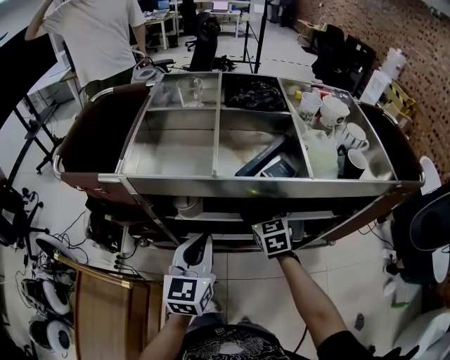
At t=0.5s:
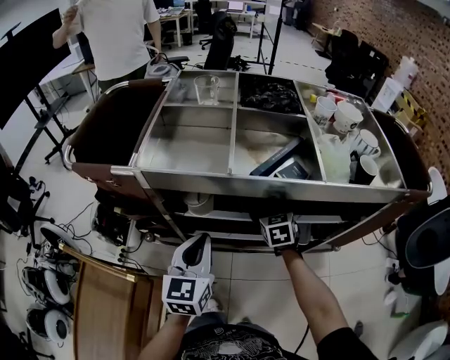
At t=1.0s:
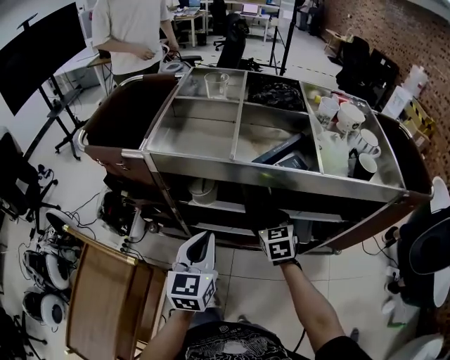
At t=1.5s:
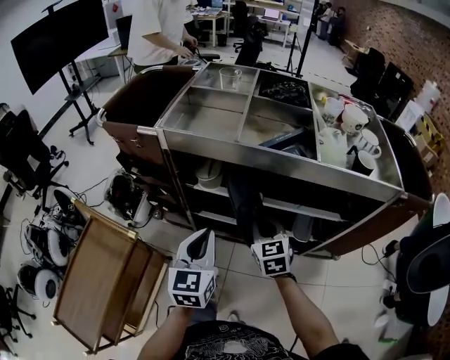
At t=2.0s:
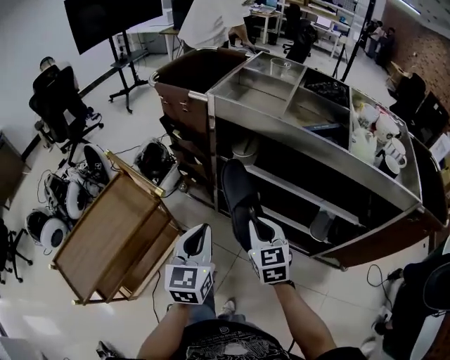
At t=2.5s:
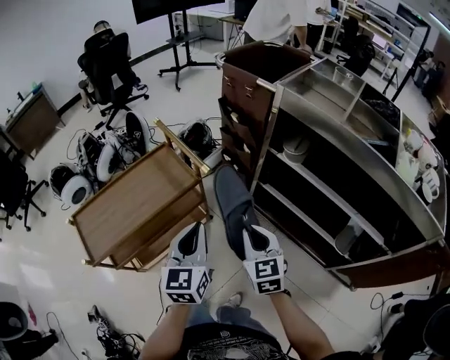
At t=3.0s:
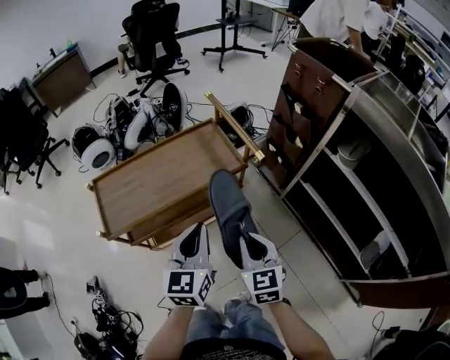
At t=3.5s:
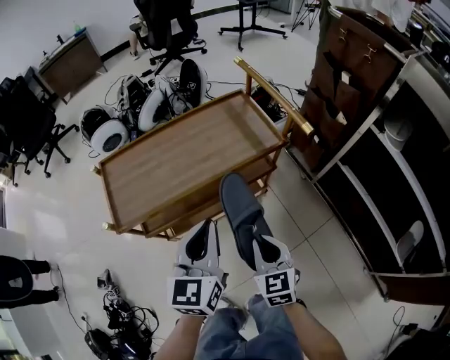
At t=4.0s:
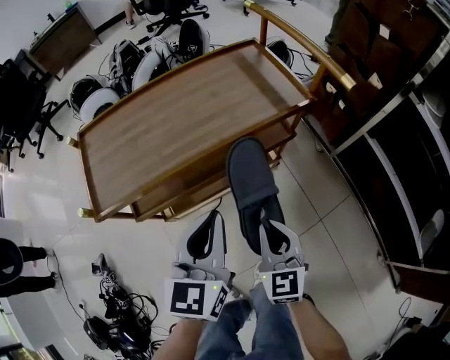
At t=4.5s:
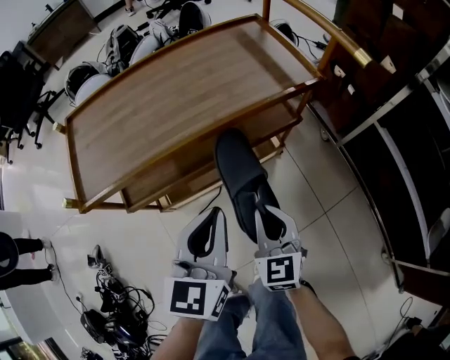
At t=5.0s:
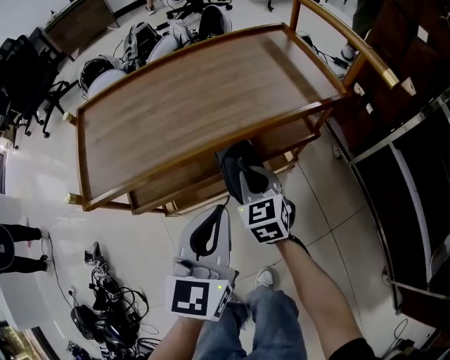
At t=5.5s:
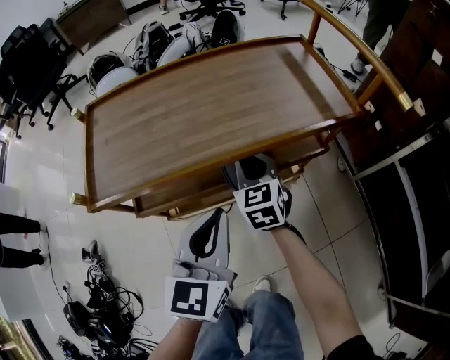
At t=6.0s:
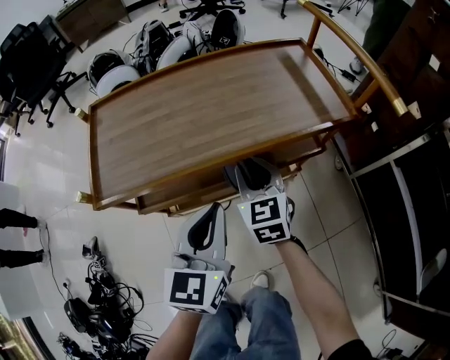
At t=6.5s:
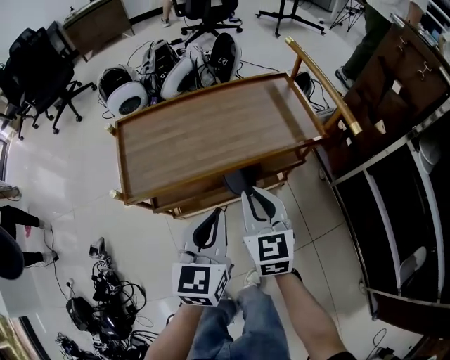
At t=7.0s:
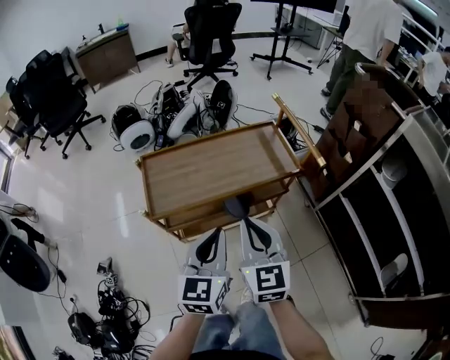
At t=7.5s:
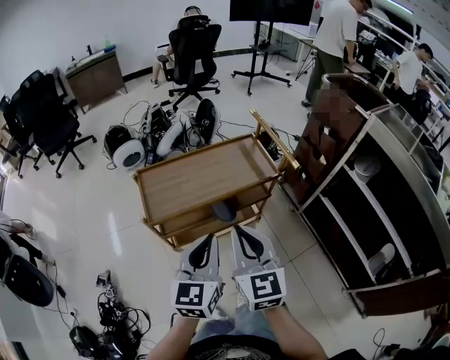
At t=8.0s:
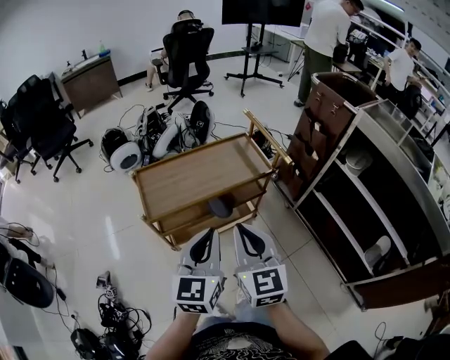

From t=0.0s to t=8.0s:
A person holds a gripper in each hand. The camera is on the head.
From t=0.0s to t=2.0s: The left gripper changes place by about 20 cm, and changes its angle by about 30 degrees. The right gripper shifts by about 25 cm, turns by about 30 degrees, and closes.
From t=2.0s to t=4.0s: The left gripper ends up about 40 cm from where it was, and changes its angle by roughly 30 degrees; the right gripper shifts by roughly 50 cm, and rotates roughly 30 degrees.
From t=4.0s to t=6.0s: The left gripper moves downward, about 5 cm. Meanwhile the right gripper is displaced forward and to the left by approximately 20 cm.
From t=6.0s to t=8.0s: The grippers both shift upward and backward by about 40 cm. The right gripper rotates about 20 degrees.

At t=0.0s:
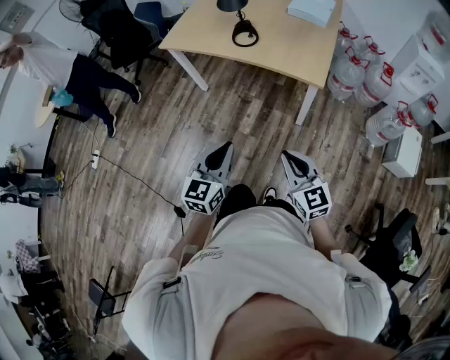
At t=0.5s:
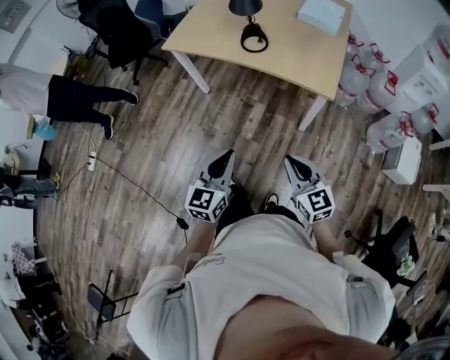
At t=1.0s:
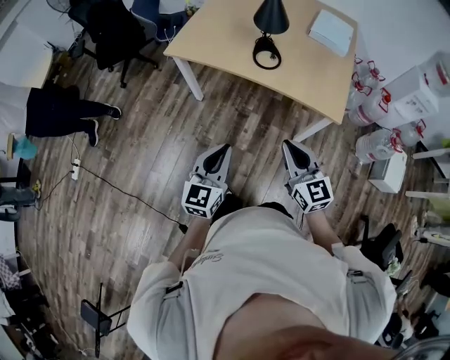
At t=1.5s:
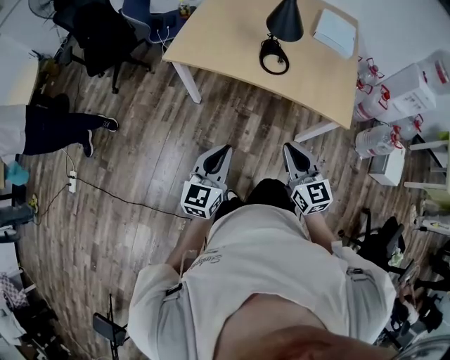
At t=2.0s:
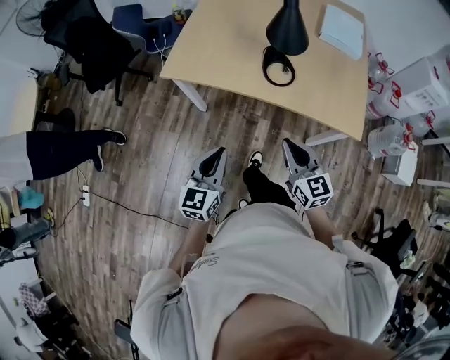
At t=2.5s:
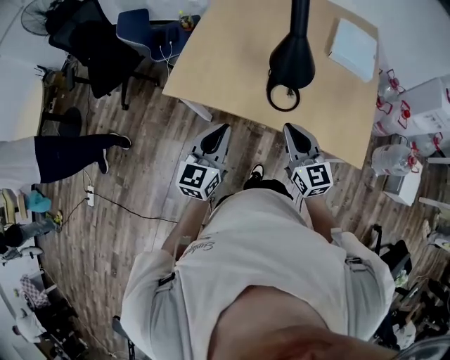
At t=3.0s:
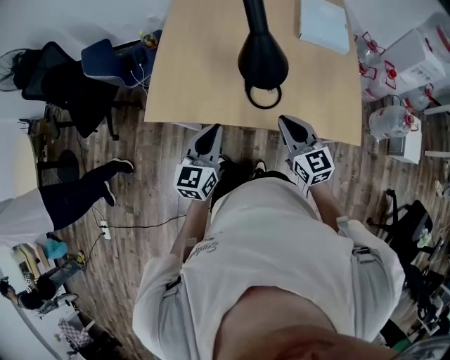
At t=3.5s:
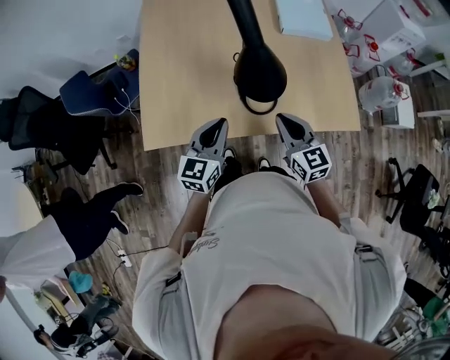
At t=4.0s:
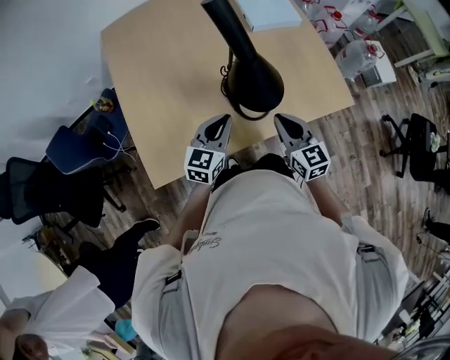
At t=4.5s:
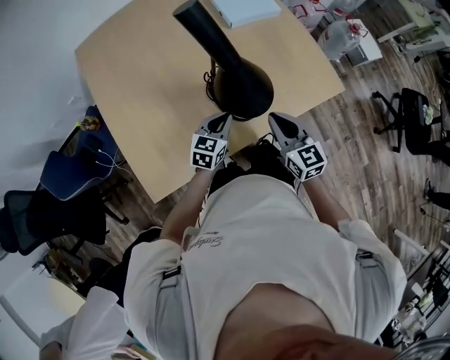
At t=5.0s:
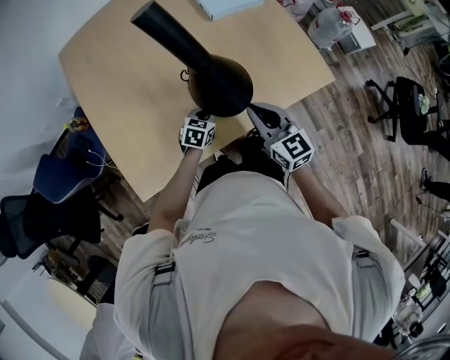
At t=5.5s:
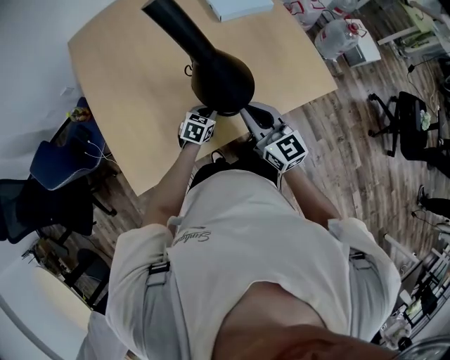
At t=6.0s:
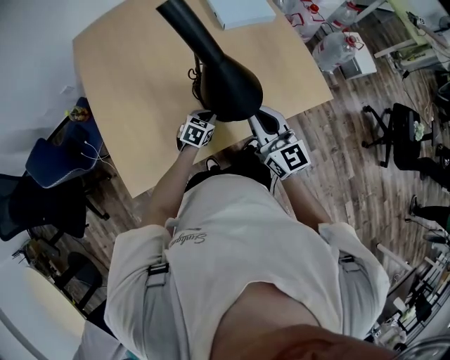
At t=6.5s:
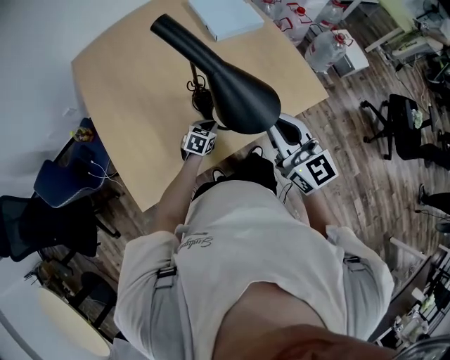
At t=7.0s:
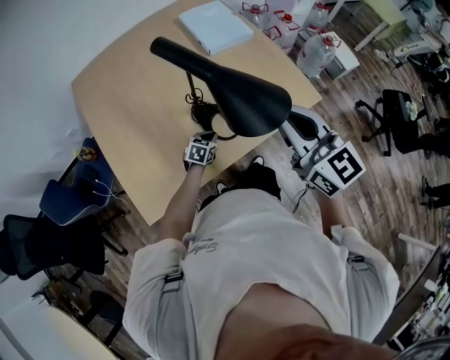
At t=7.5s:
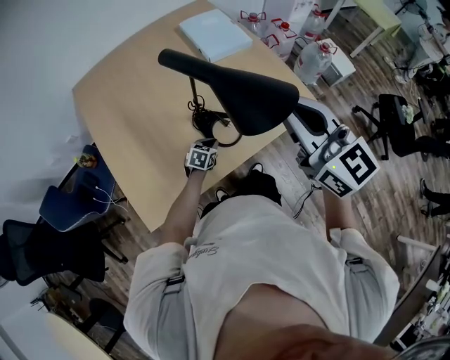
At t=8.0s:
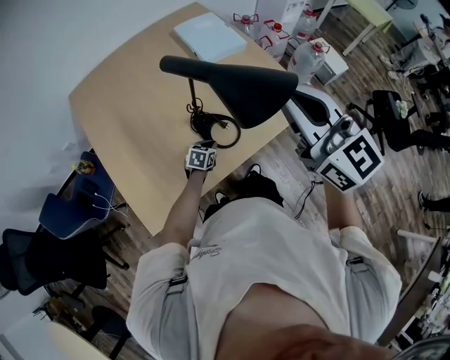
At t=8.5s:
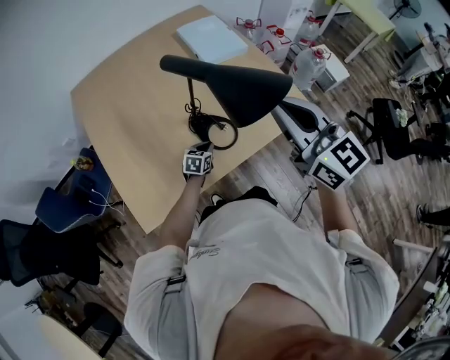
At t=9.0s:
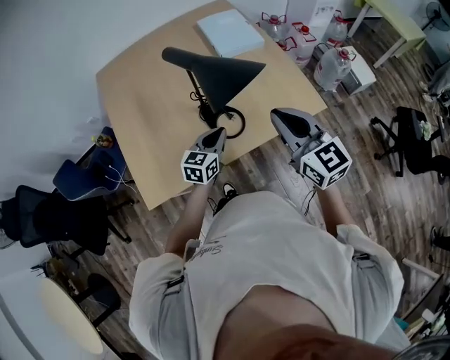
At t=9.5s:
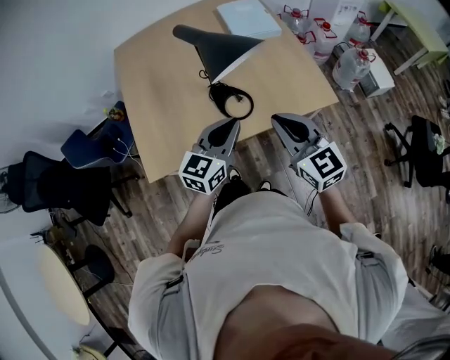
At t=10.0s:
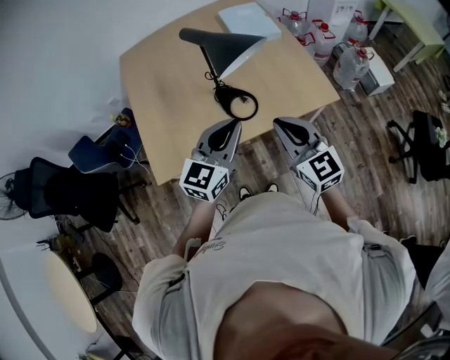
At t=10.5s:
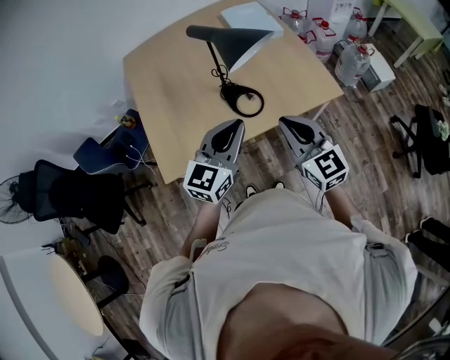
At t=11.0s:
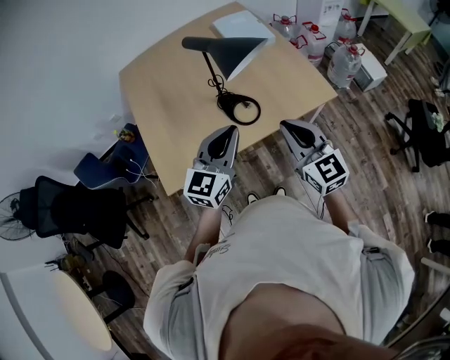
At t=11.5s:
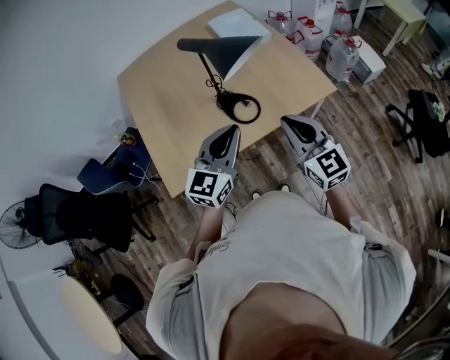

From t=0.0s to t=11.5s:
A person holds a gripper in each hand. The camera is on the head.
From t=0.0s to t=2.0s: Both grippers are carried forward and to the left, some 40 cm.
From t=2.0s to t=4.0s: The left gripper shifts by some 40 cm, and turns by some 50 degrees. Meanwhile the right gripper moves roughly 25 cm, and changes its angle by approximately 30 degrees.
From t=4.0s to t=6.0s: The right gripper shifts some 5 cm upward. The left gripper shifts about 20 cm downward, and tilts its fingers approximately 30 degrees downward.
From t=6.0s to t=7.5s: The right gripper goes about 25 cm upward.
From t=7.5s to t=9.5s: The left gripper travels upward by roughly 35 cm, and tilts its fingers approximately 40 degrees upward, while the right gripper moves downward, backward and to the right, about 15 cm.
From t=9.5s to t=11.5s: The left gripper shifts some 5 cm upward.

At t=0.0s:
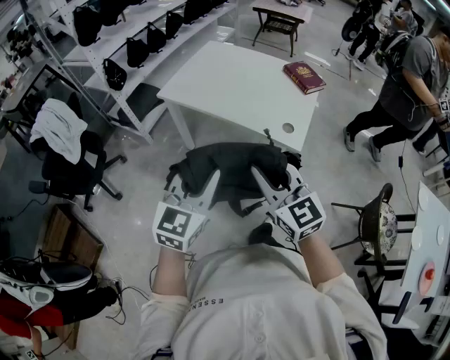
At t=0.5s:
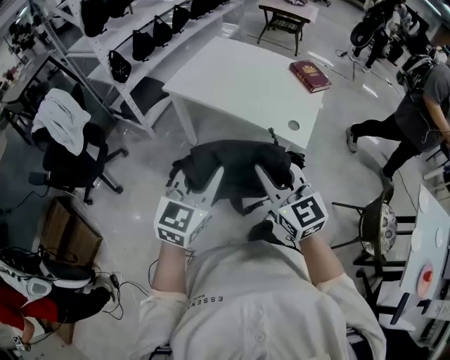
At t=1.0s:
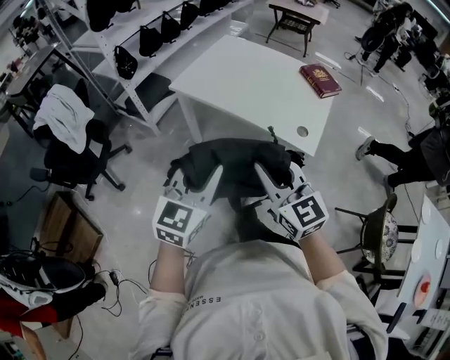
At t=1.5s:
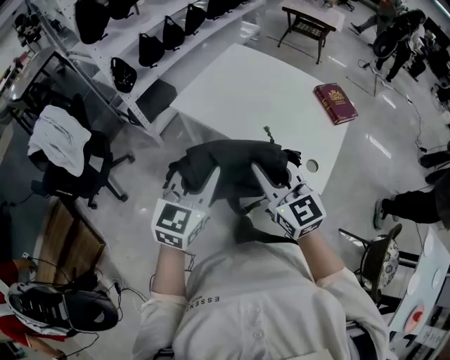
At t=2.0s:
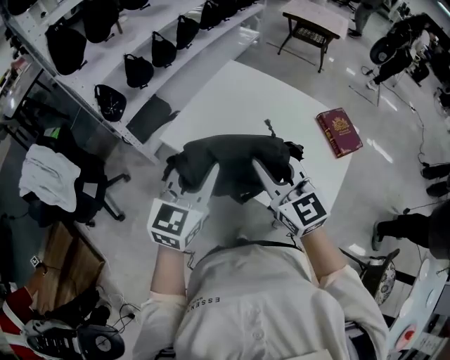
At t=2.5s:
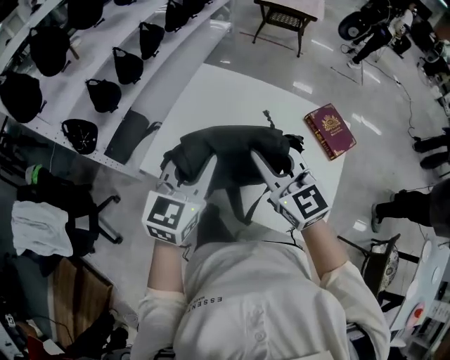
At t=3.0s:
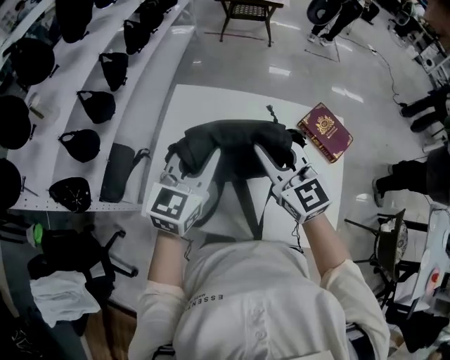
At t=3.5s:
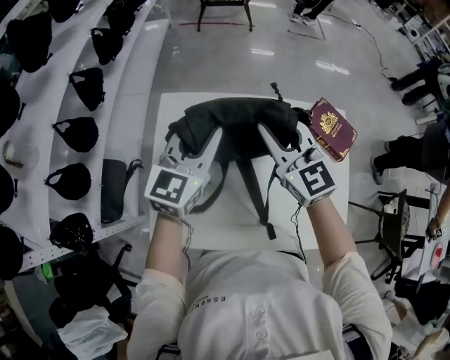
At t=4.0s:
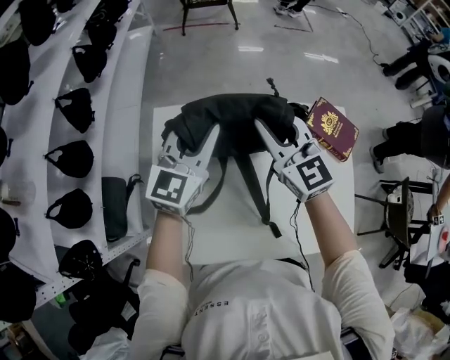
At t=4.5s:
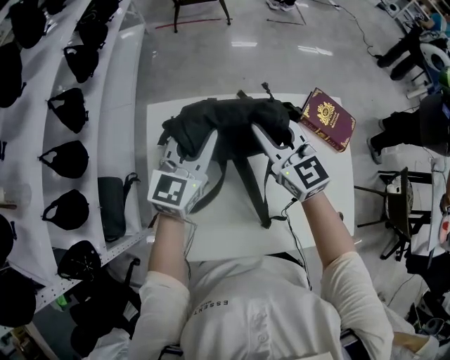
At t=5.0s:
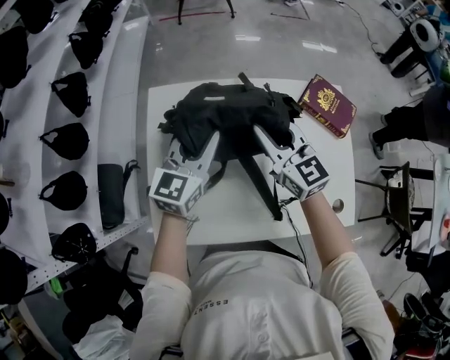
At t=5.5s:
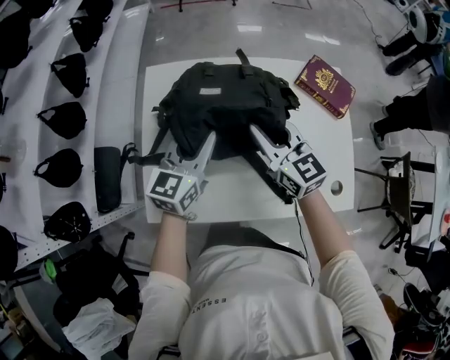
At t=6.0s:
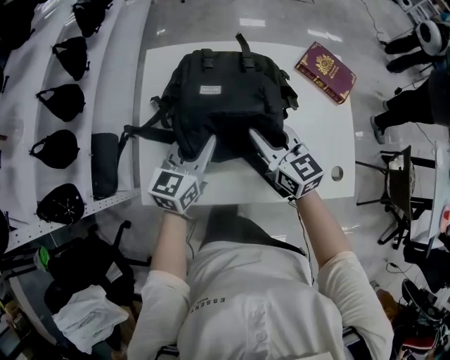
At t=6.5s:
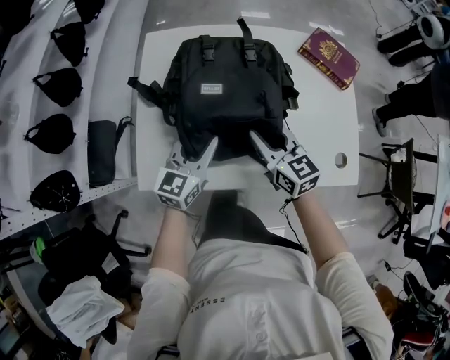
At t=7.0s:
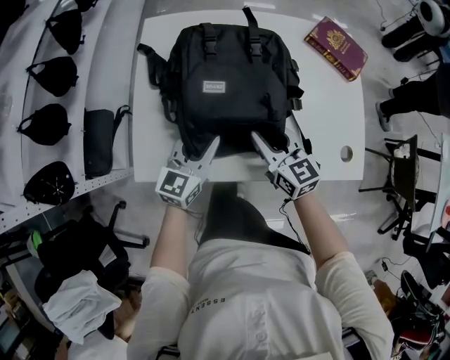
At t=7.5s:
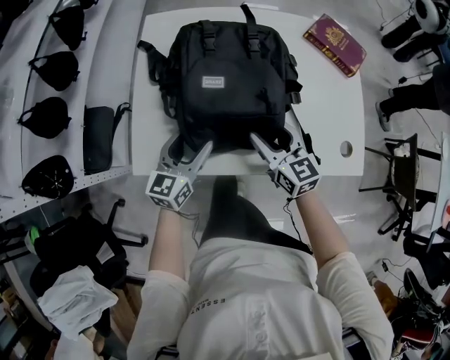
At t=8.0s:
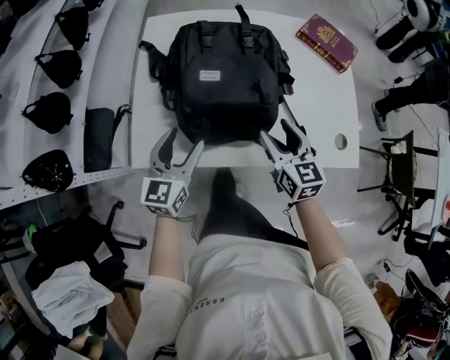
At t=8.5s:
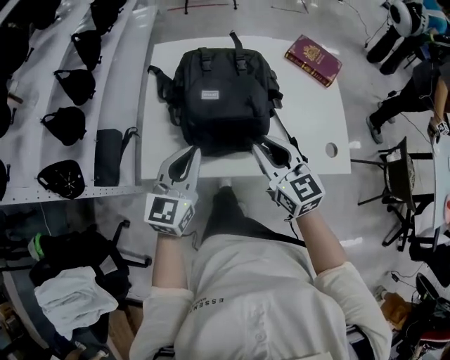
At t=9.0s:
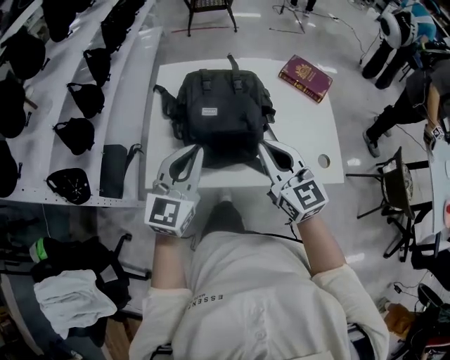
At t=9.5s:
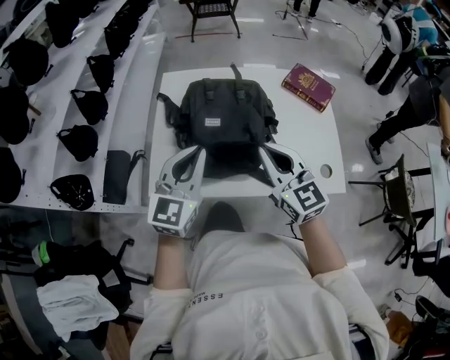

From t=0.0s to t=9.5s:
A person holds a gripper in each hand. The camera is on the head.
From t=0.0s to t=2.0s: Both grippers move forward, some 35 cm.
From t=2.0s to t=4.0s: Both grippers are carried some 40 cm. The left gripper changes its angle by roughly 40 degrees, while the right gripper rotates roughly 30 degrees.
From t=4.0s to t=5.5s: Both grippers travel together backward and downward, about 15 cm.
From t=5.5s to t=7.5s: Both grippers travel together backward and downward, approximately 20 cm. The left gripper opens its fingers; the right gripper opens up.
From t=7.5s to t=9.5s: The two grippers go roughly 20 cm upward. The right gripper closes up. The left gripper turns by roughly 20 degrees, and closes up.
